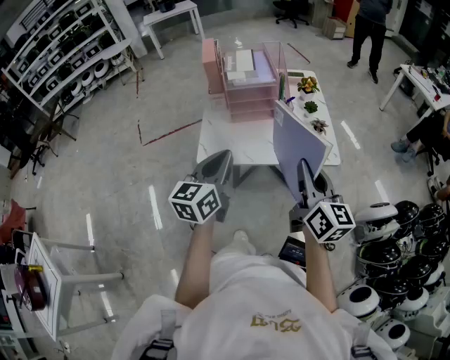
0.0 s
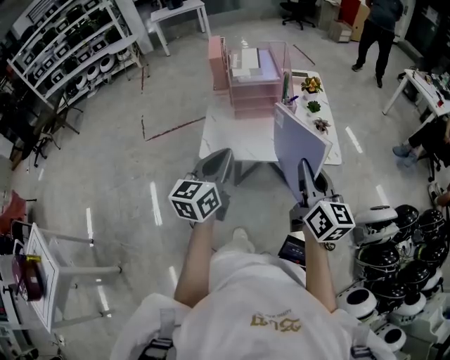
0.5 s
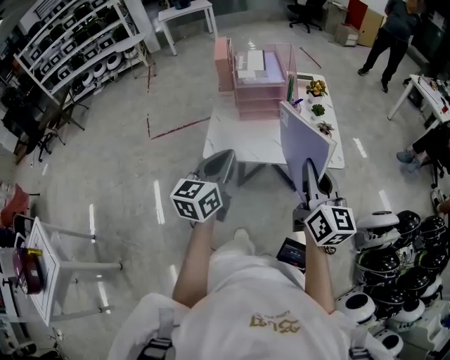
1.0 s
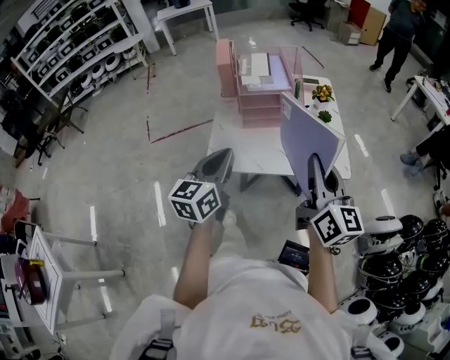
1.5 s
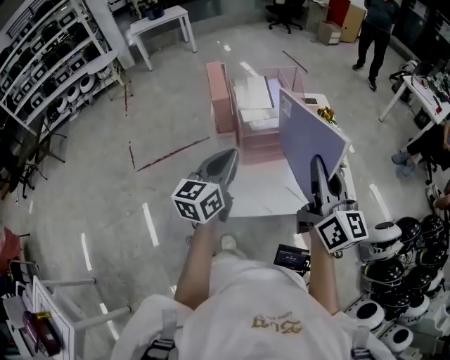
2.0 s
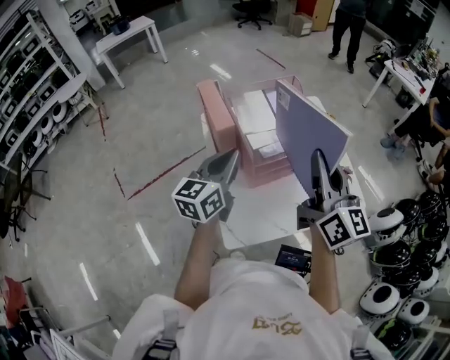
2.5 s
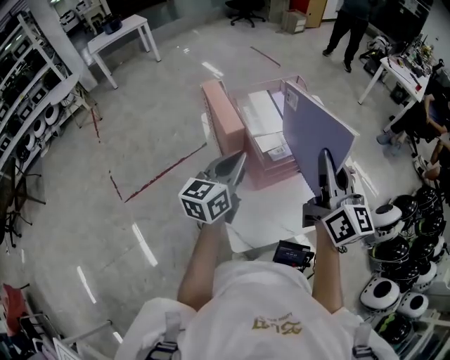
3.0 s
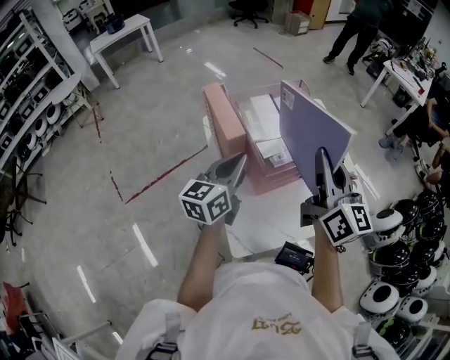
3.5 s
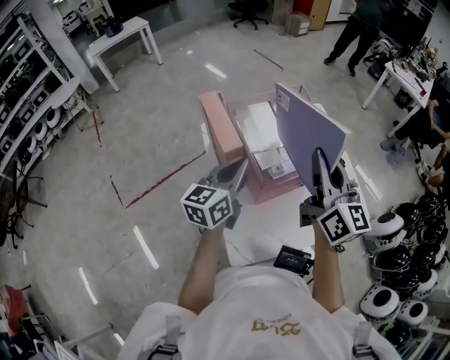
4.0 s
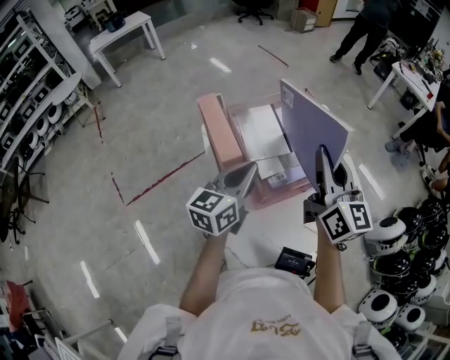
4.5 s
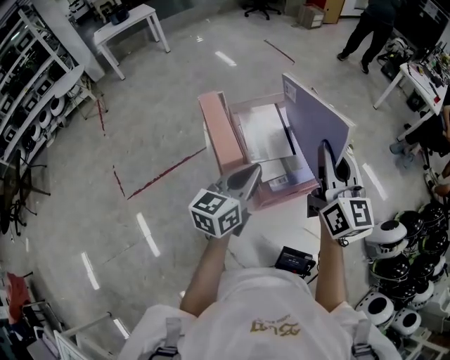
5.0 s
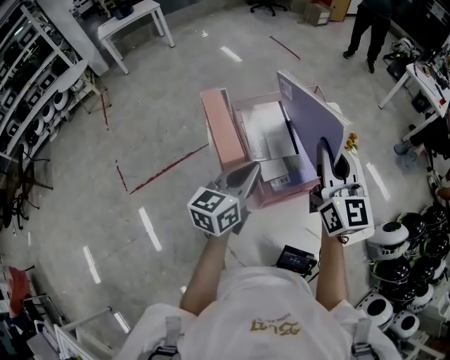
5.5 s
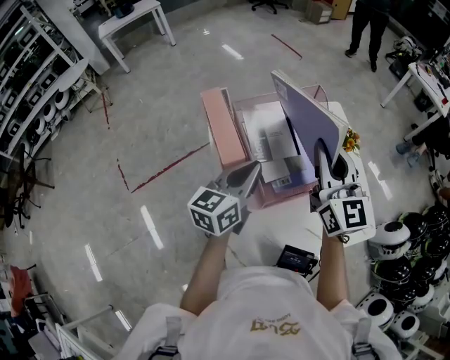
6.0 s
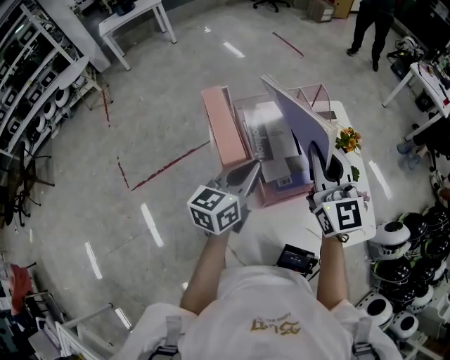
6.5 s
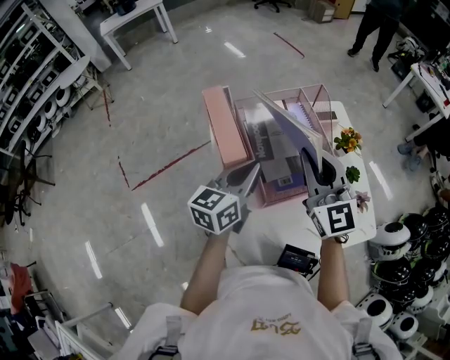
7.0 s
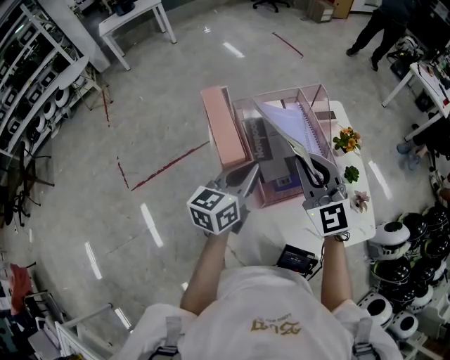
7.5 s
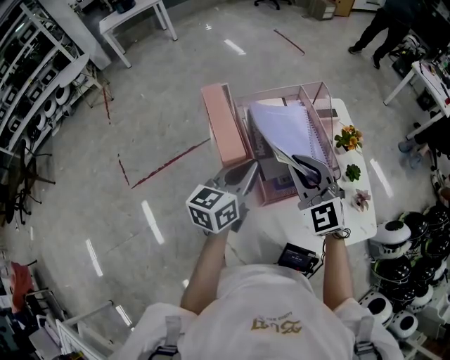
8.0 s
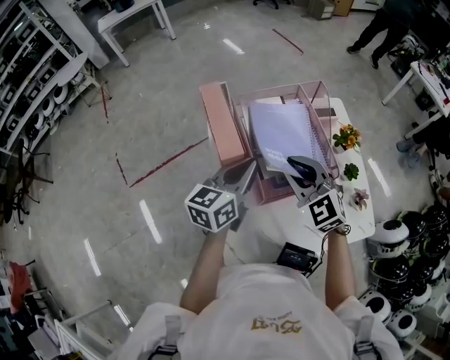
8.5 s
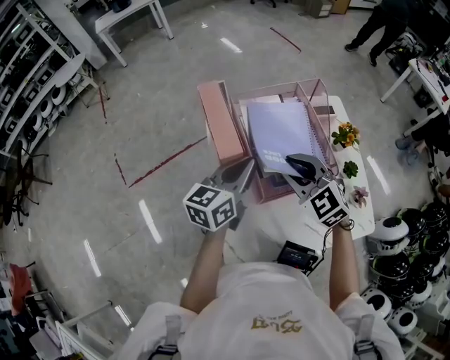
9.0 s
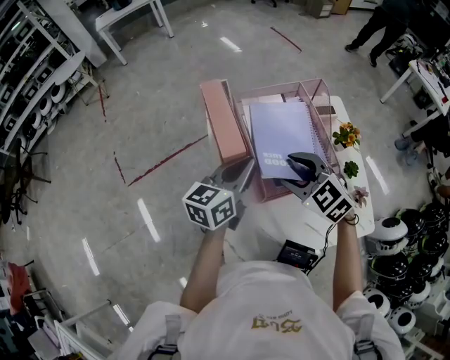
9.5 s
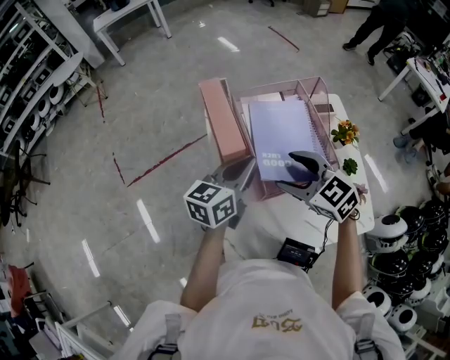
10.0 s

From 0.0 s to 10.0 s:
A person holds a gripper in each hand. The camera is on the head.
From 0.0 s to 2.0 s: The right gripper goes some 20 cm forward, to the left and upward, while the left gripper heads forward and to the left, covering about 25 cm.
From 2.0 s to 4.0 s: Both grippers move forward and to the left, roughly 20 cm.
From 4.0 s to 6.0 s: The right gripper heads forward, covering about 10 cm. Meanwhile the left gripper shifts by about 5 cm.
From 6.0 s to 8.0 s: The right gripper goes about 10 cm downward and to the left, and turns by about 40 degrees.
From 8.0 s to 10.0 s: The right gripper swivels about 30 degrees, and opens its fingers.

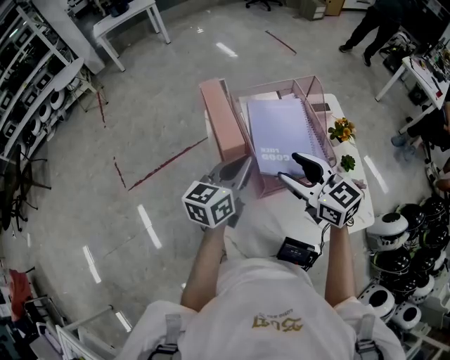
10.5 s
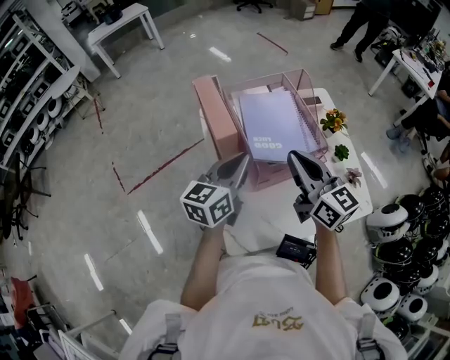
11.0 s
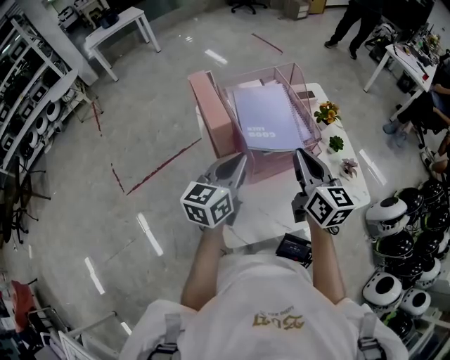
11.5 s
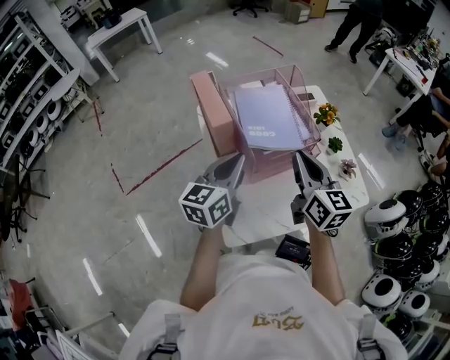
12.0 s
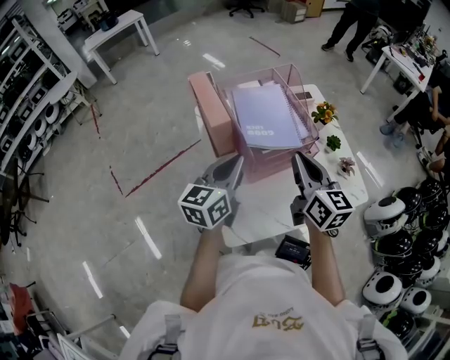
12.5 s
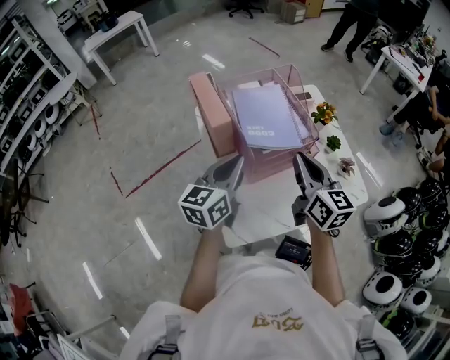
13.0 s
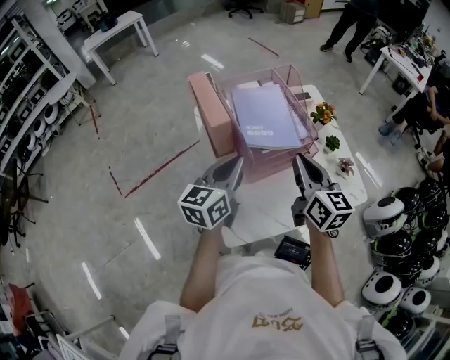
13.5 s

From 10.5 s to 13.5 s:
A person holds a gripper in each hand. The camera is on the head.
From 10.5 s to 12.0 s: The right gripper goes approximately 10 cm to the right and backward, rotates approximately 40 degrees, and closes up; the left gripper travels backward by some 10 cm.
From 12.0 s to 13.5 s: Both grippers stay about where they are.

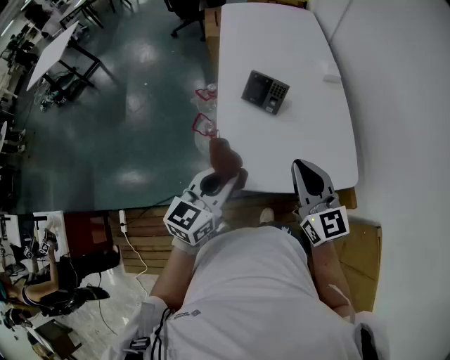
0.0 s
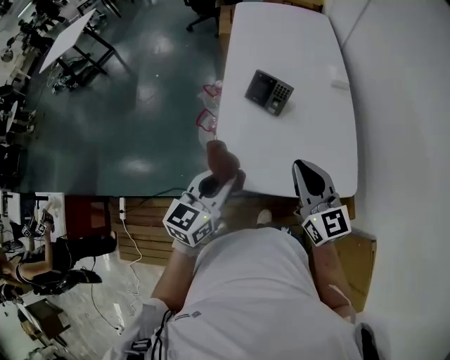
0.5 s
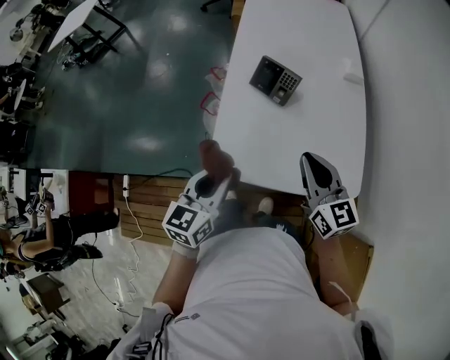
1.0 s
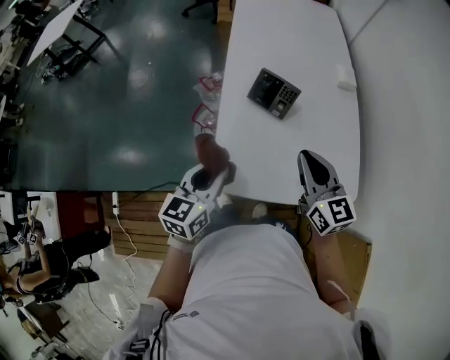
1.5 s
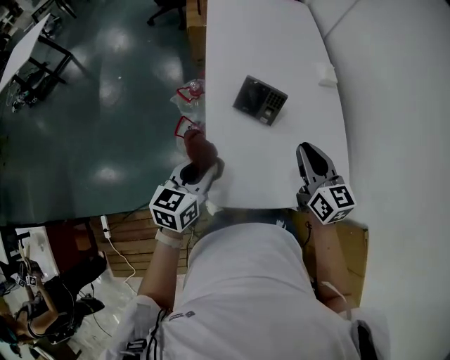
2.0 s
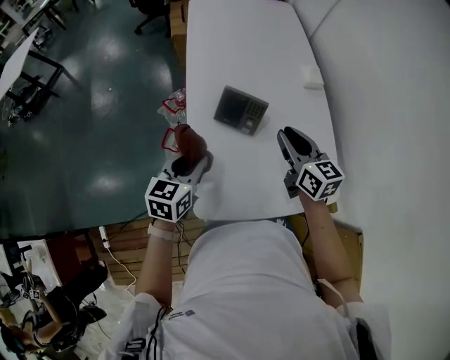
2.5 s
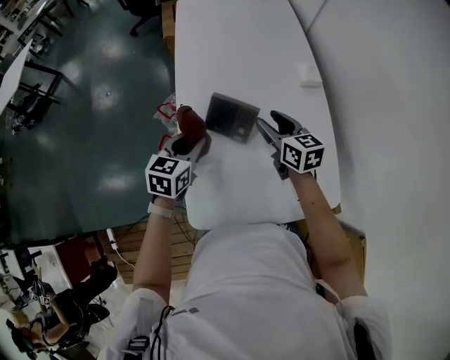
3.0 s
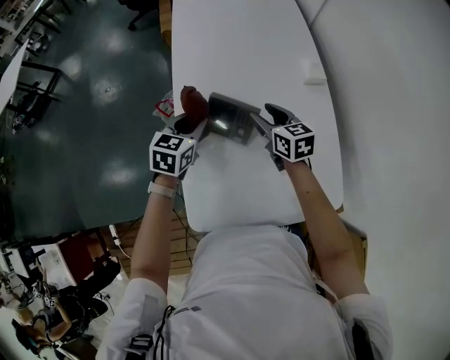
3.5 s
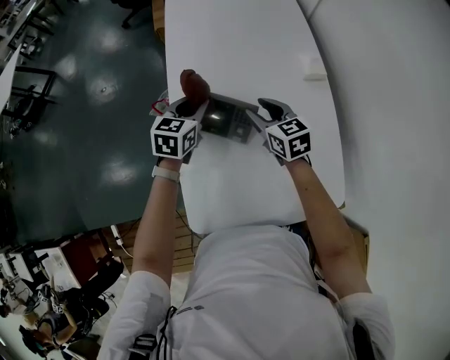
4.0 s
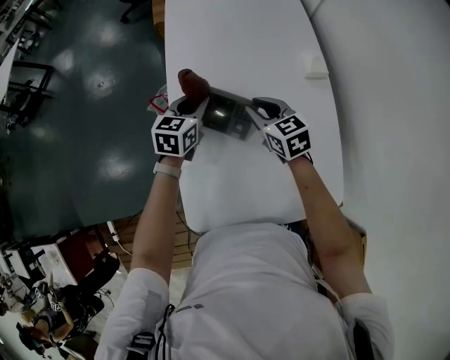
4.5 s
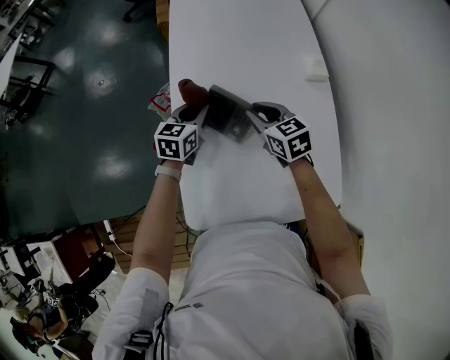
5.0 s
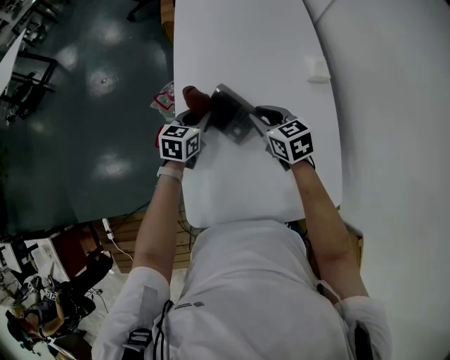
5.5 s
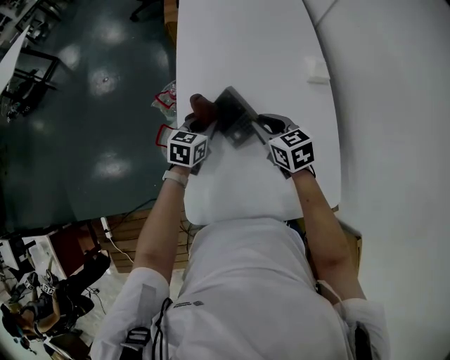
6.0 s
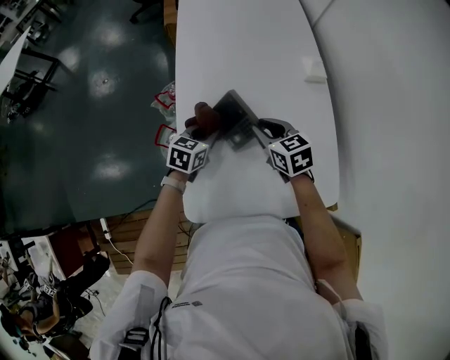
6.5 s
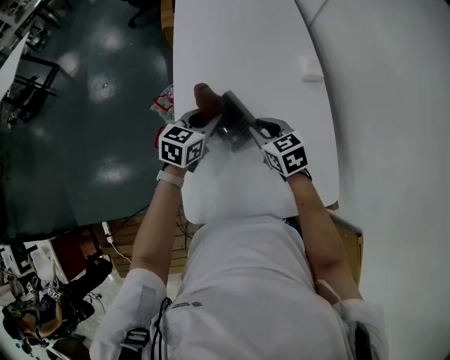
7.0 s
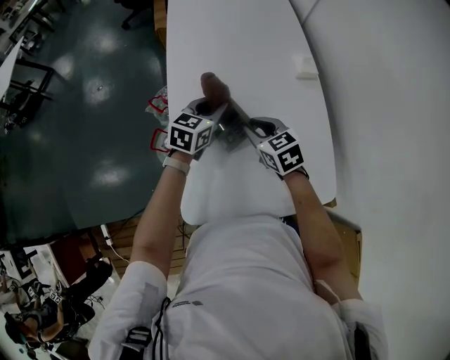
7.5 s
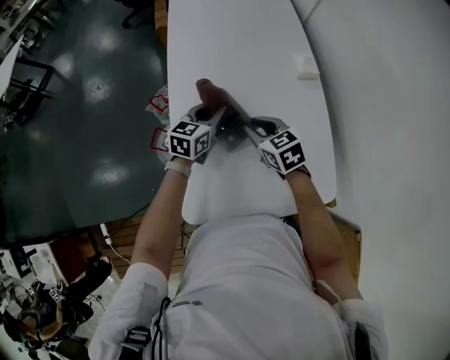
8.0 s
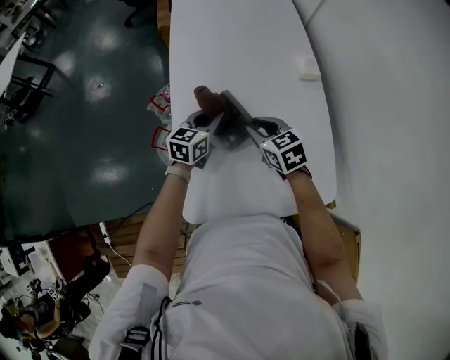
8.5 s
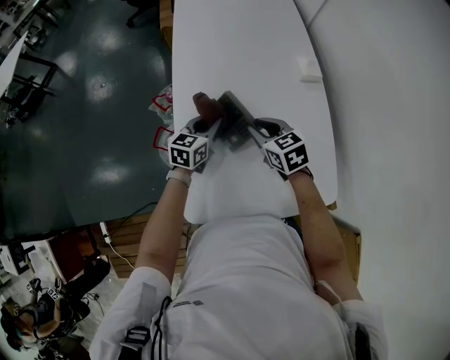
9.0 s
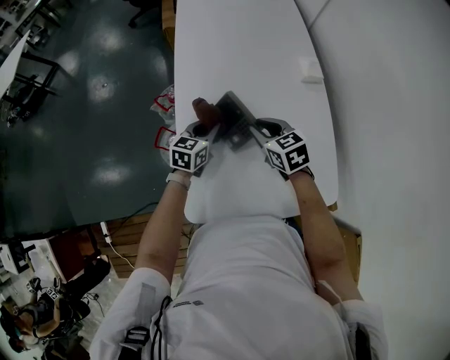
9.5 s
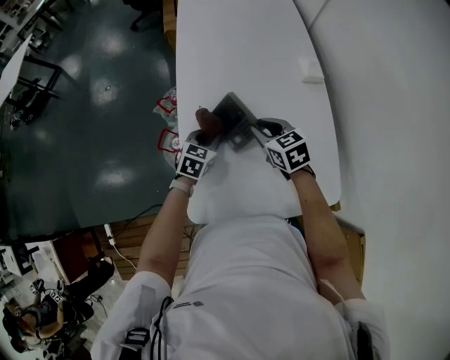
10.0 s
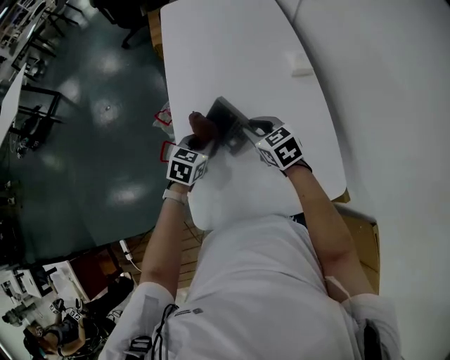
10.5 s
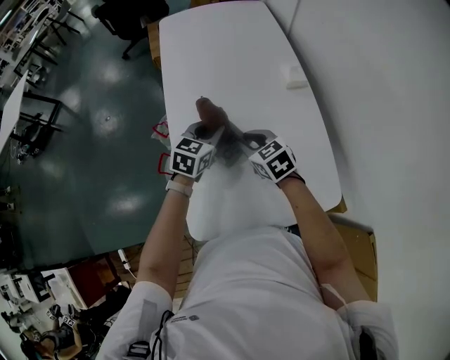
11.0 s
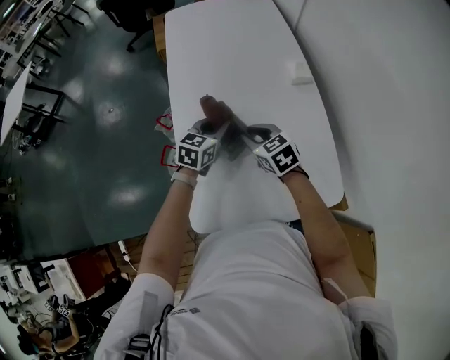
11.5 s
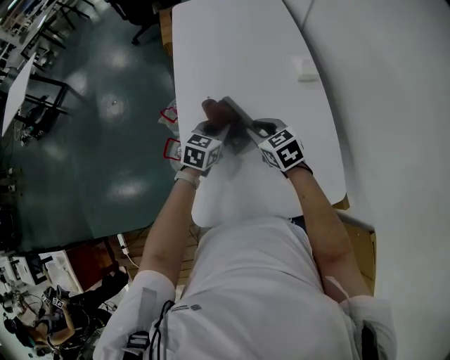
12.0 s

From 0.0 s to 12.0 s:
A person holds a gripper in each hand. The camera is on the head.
From 0.0 s to 2.0 s: The right gripper goes approximately 15 cm forward. The left gripper travels forward, downward and to the left by some 15 cm.
From 2.0 s to 4.0 s: The right gripper is displaced forward and downward by some 25 cm, and opens up; the left gripper travels forward by about 30 cm.
From 4.0 s to 6.0 s: The right gripper travels backward by some 5 cm, and closes its fingers. Meanwhile the left gripper travels downward and backward by about 10 cm.
From 6.0 s to 8.0 s: The left gripper moves upward and to the right, approximately 10 cm.
From 8.0 s to 10.0 s: The left gripper moves downward and backward, about 10 cm, and swivels about 20 degrees.
From 10.0 s to 12.0 s: The left gripper moves upward, some 5 cm.

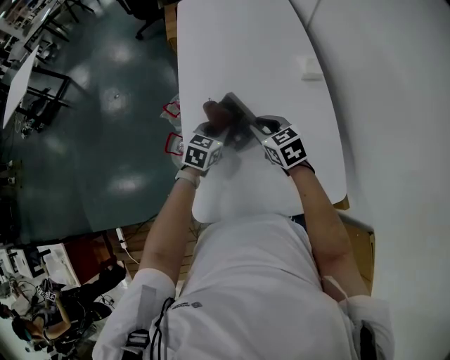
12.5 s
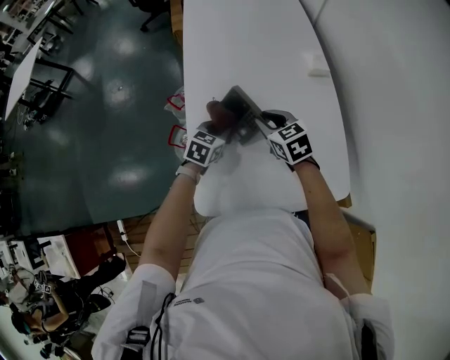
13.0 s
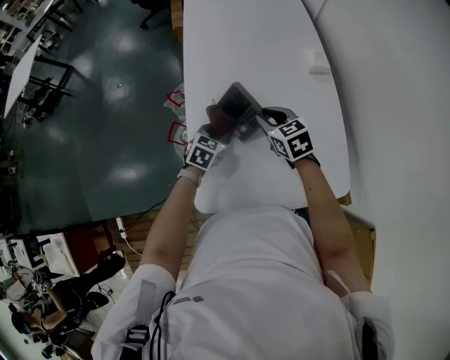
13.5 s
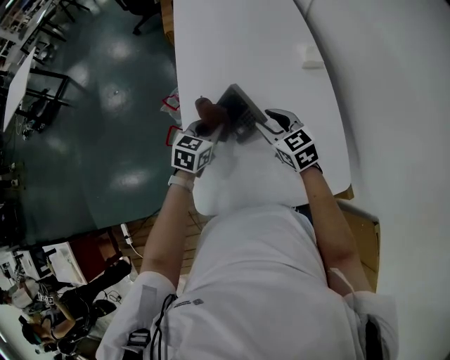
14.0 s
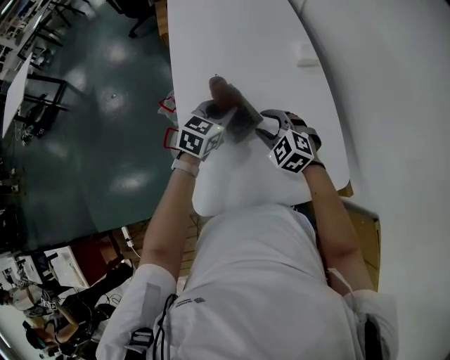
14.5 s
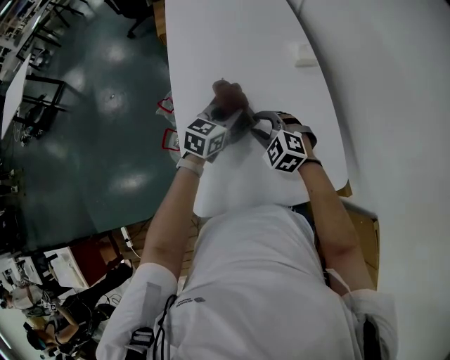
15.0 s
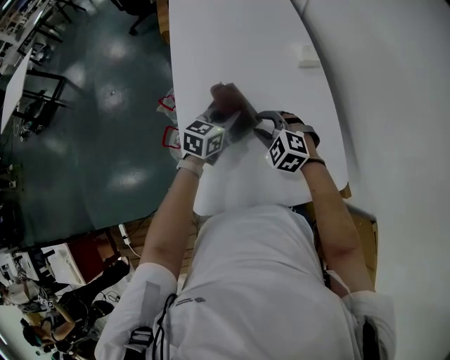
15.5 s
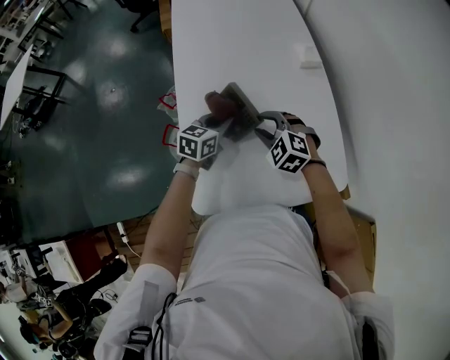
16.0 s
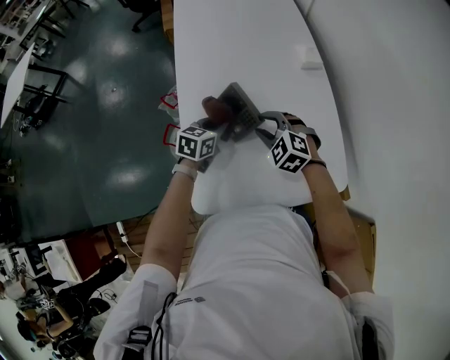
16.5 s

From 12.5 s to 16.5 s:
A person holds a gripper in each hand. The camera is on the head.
From 12.5 s to 14.5 s: The left gripper is displaced upward by some 5 cm, while the right gripper changes its angle by approximately 40 degrees.
From 14.5 s to 16.5 s: The left gripper shifts approximately 10 cm downward.
